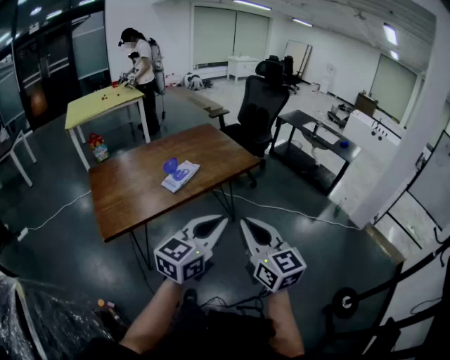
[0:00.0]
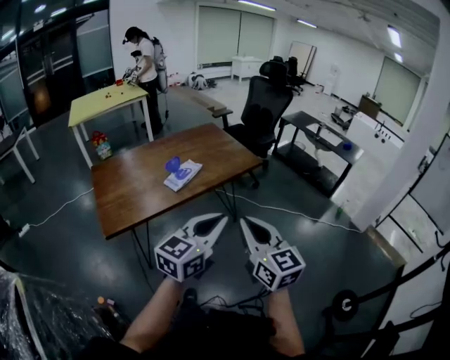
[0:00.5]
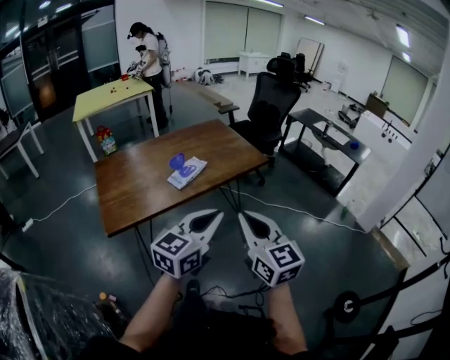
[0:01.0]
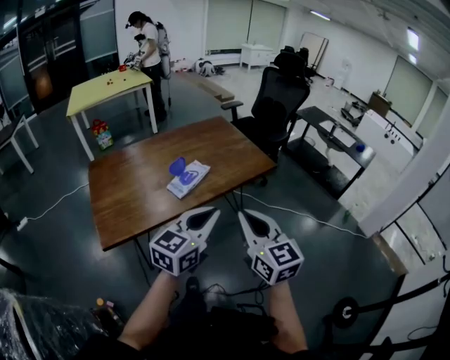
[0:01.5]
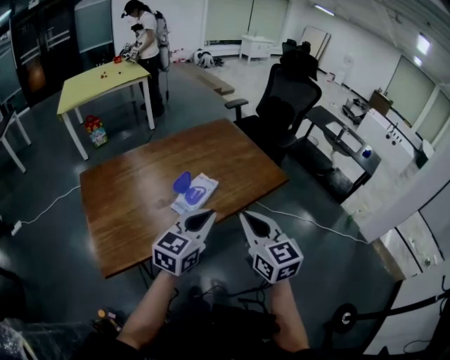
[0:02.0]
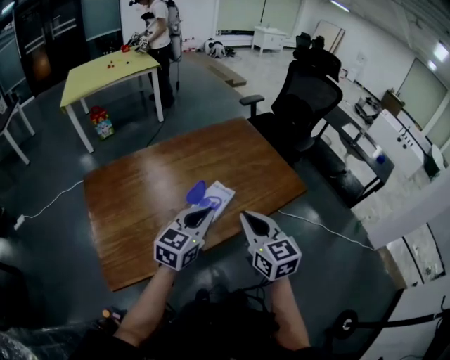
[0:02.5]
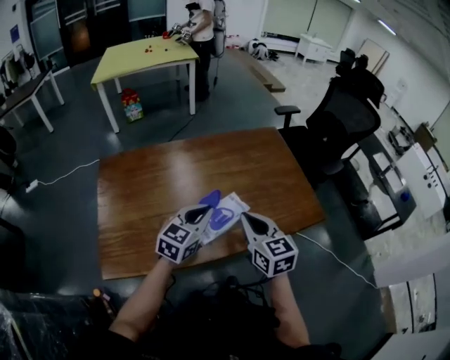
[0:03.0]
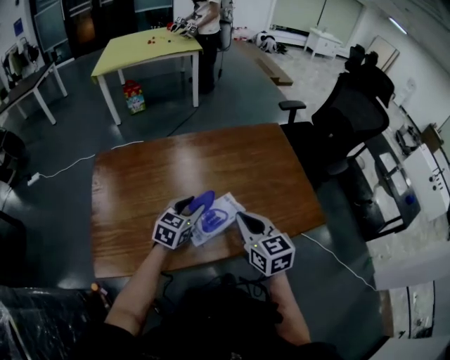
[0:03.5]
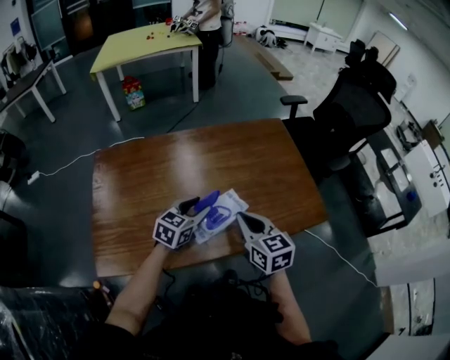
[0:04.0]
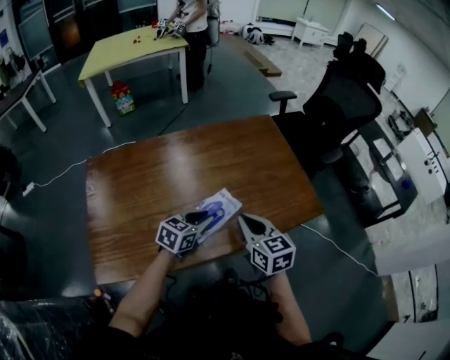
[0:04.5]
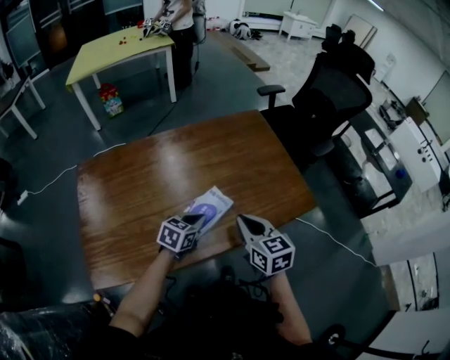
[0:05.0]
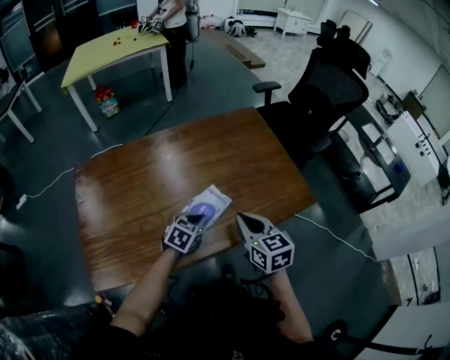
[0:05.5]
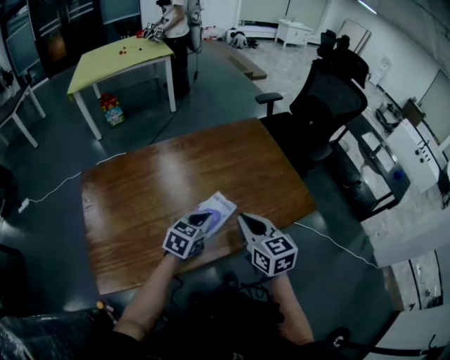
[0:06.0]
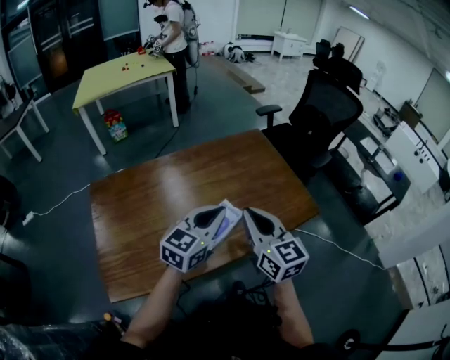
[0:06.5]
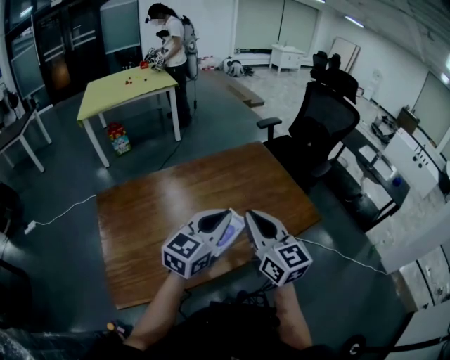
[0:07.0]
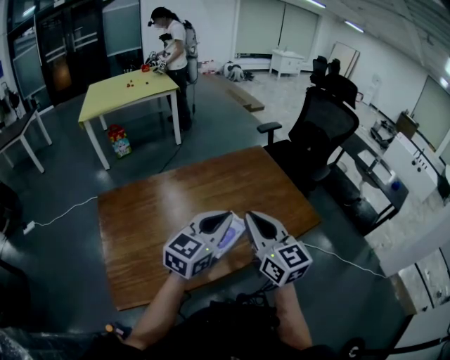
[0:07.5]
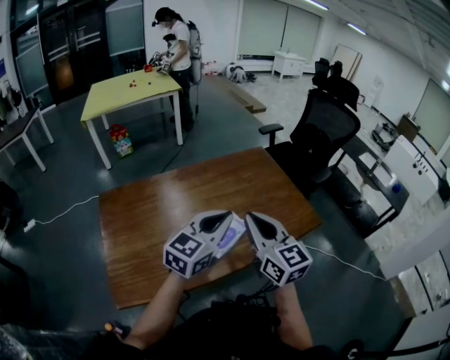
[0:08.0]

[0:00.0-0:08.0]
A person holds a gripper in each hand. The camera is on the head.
0:00.0 to 0:02.0: Both grippers travel together forward and to the left, about 30 cm.
0:02.0 to 0:04.0: The left gripper goes roughly 30 cm forward, downward and to the left, rotates roughly 20 degrees, and opens; the right gripper moves forward and downward, roughly 25 cm, and changes its angle by roughly 20 degrees.
0:04.0 to 0:06.0: The left gripper travels to the right by some 5 cm, travels downward and back again, some 10 cm each way, and closes.
0:06.0 to 0:08.0: The left gripper goes approximately 20 cm upward, and rotates approximately 30 degrees, while the right gripper heads upward, covering about 15 cm.

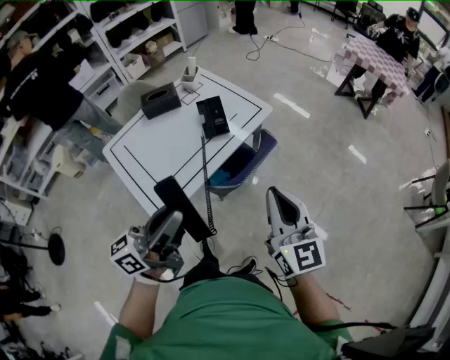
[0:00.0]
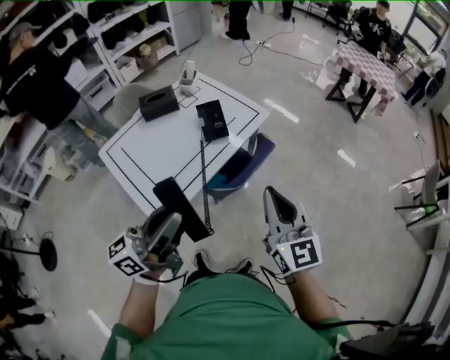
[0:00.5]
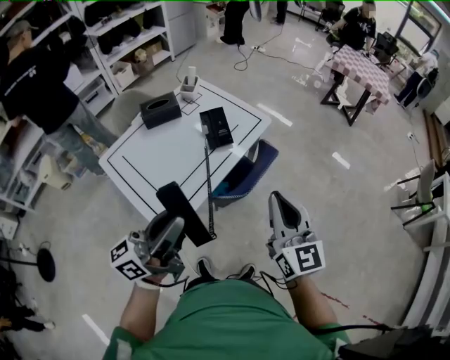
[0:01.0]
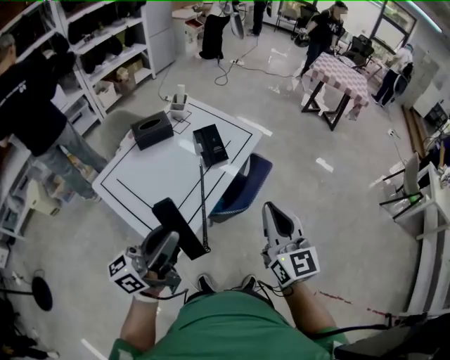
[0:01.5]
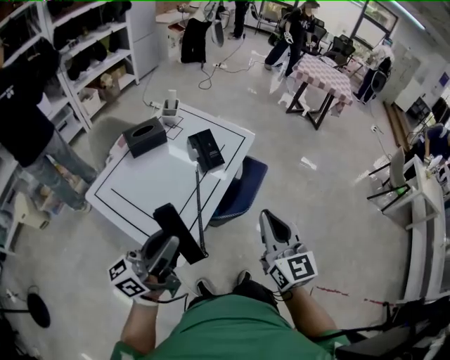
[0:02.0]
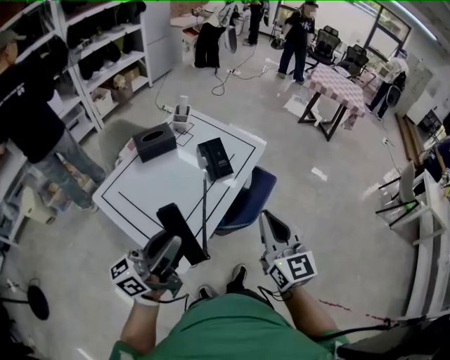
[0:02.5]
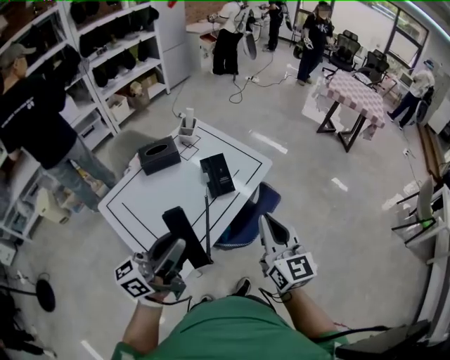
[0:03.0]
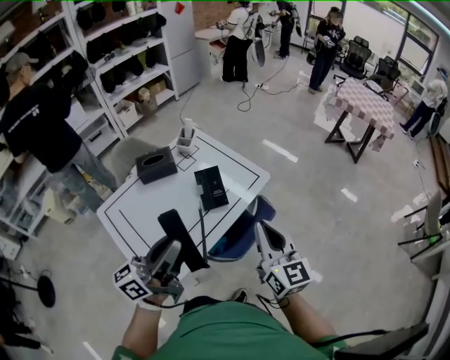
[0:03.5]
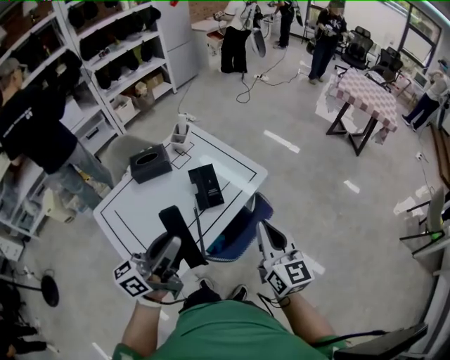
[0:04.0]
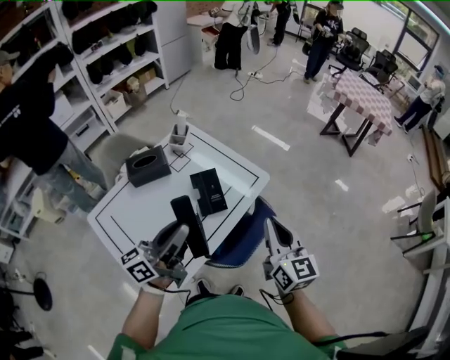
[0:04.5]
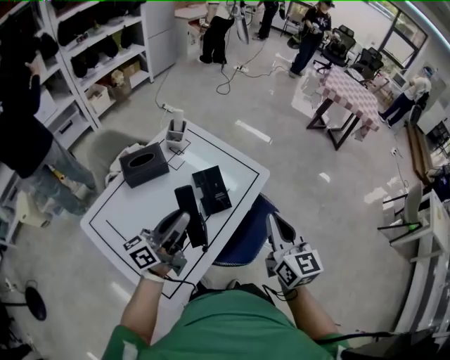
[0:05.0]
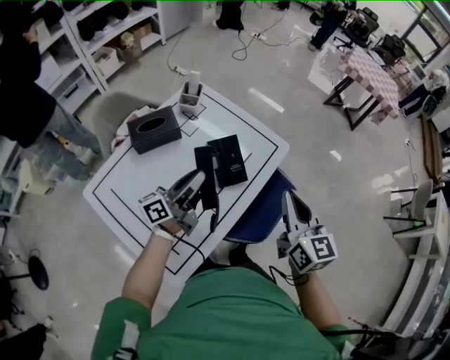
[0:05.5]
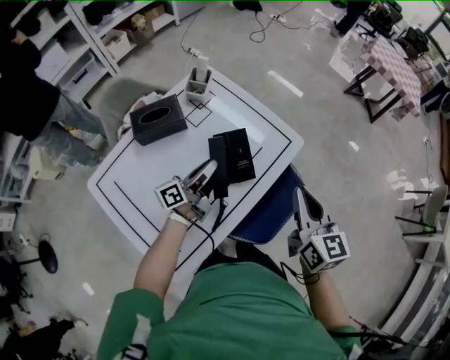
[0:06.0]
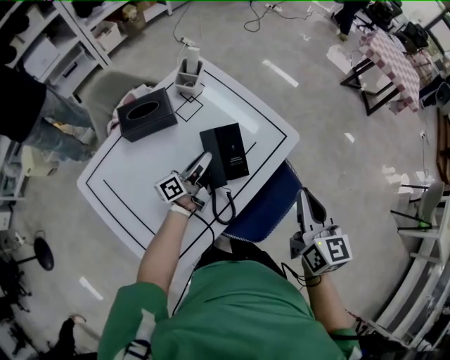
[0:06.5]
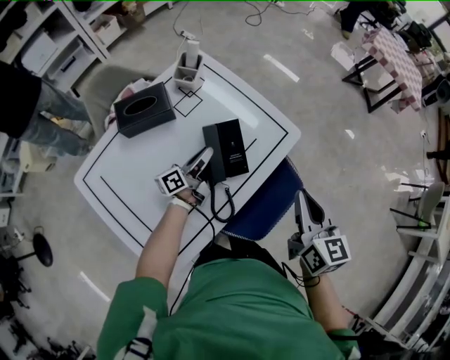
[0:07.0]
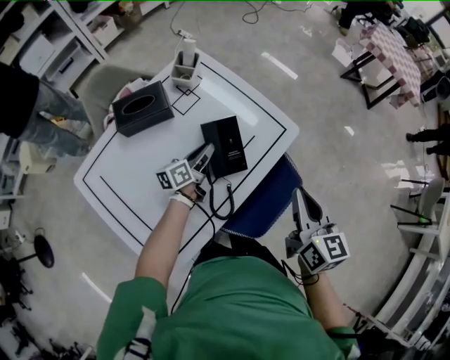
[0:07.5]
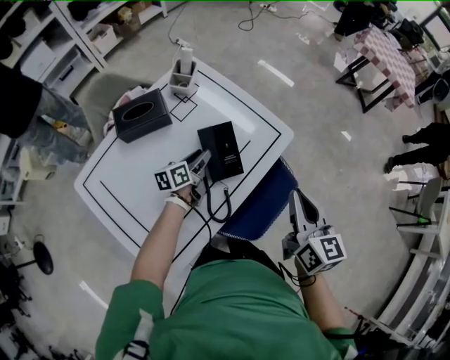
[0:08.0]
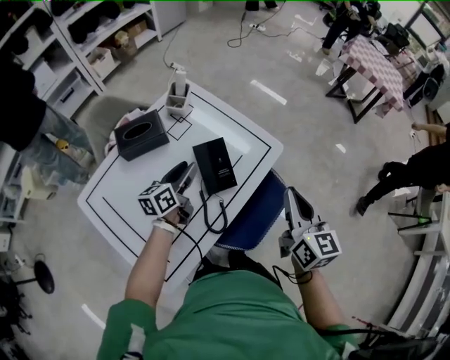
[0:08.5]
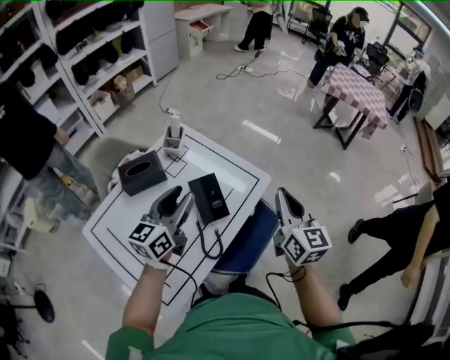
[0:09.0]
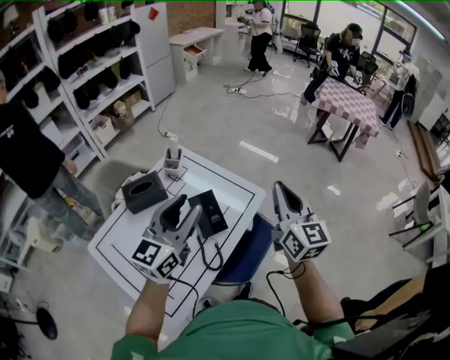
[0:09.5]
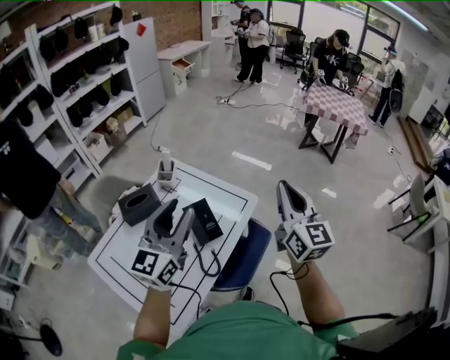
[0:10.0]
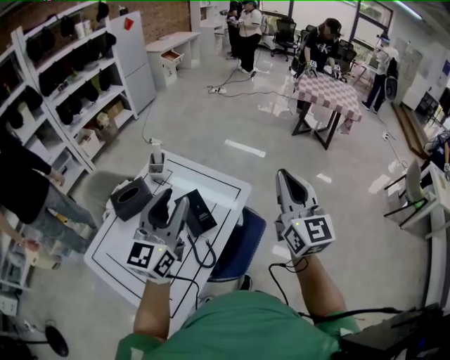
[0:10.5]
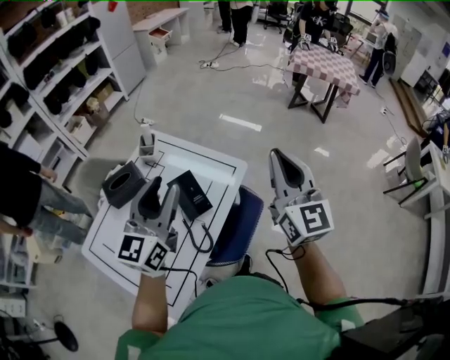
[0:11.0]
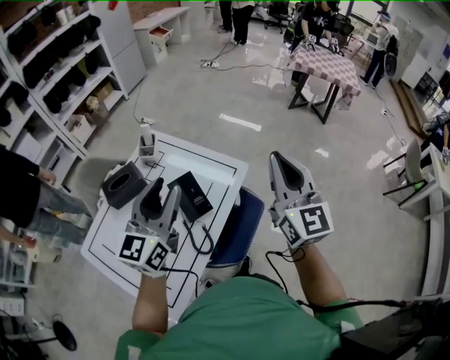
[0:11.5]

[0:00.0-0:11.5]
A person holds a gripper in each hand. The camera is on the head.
0:00.0 to 0:02.0: Both grippers move to the left, roughly 20 cm.
0:02.0 to 0:04.0: Both grippers travel together forward and to the right, some 25 cm.
0:04.0 to 0:06.0: The left gripper goes about 40 cm downward, forward and to the left, and changes its angle by some 30 degrees. The right gripper shifts roughly 15 cm forward, to the left and downward.
0:06.0 to 0:07.5: The left gripper travels downward and forward by about 10 cm, and turns by roughly 20 degrees.
0:07.5 to 0:09.5: The right gripper is displaced upward by about 20 cm, and turns by roughly 30 degrees. The left gripper shifts about 40 cm upward, and twists roughly 50 degrees clockwise, seen from behind.
0:09.5 to 0:11.5: The right gripper ends up some 5 cm from where it was.

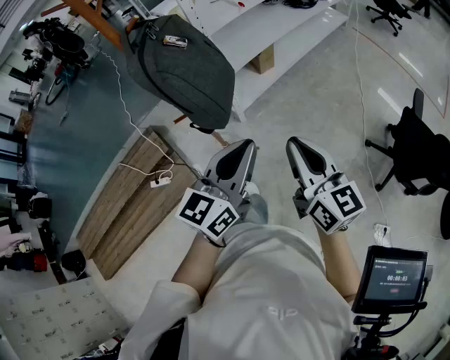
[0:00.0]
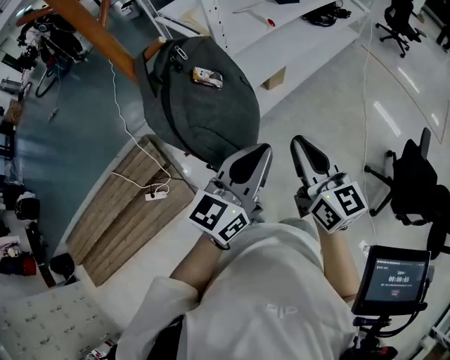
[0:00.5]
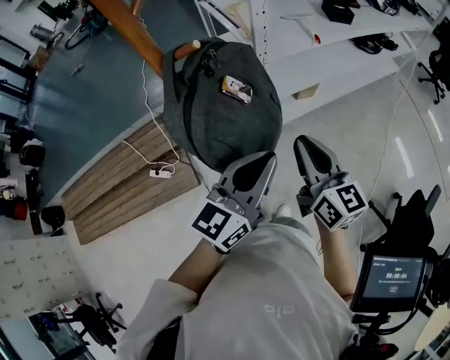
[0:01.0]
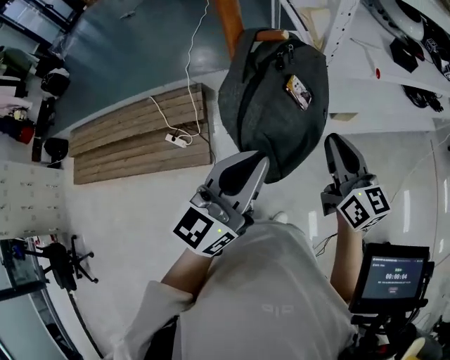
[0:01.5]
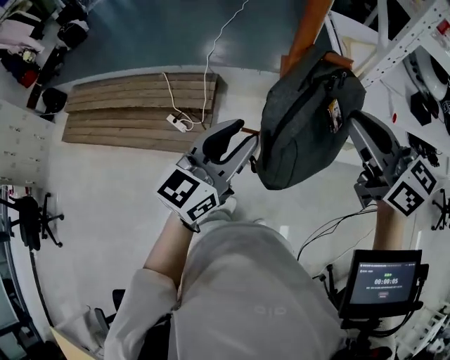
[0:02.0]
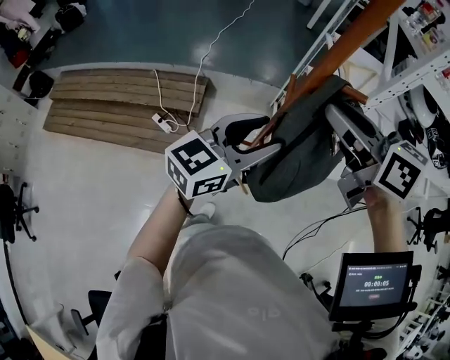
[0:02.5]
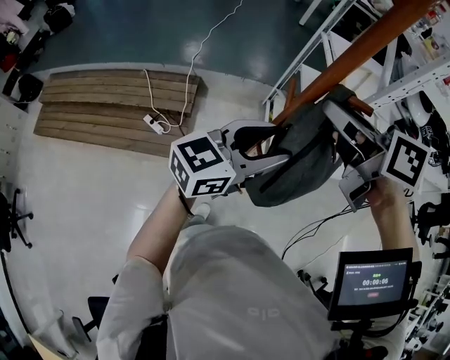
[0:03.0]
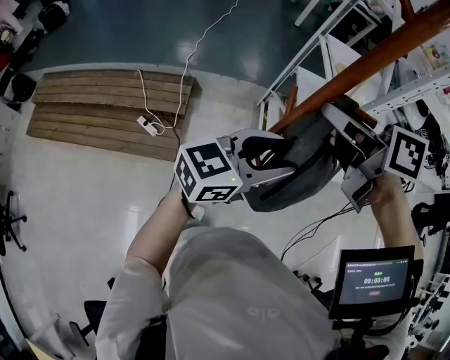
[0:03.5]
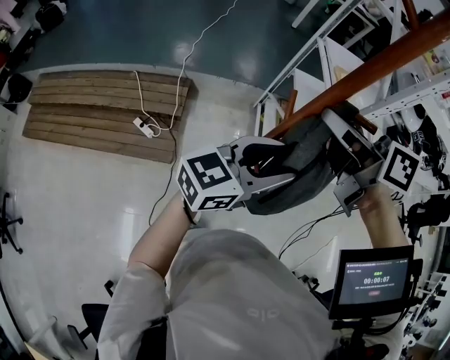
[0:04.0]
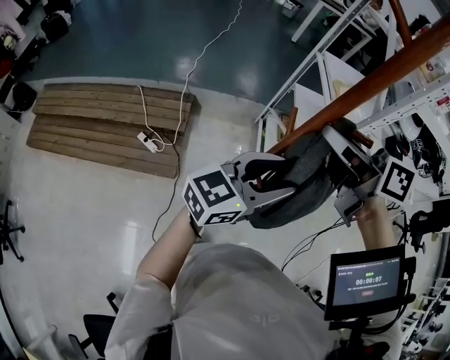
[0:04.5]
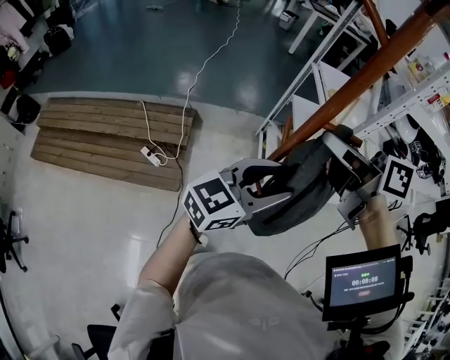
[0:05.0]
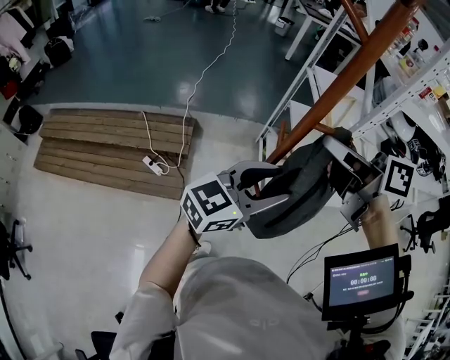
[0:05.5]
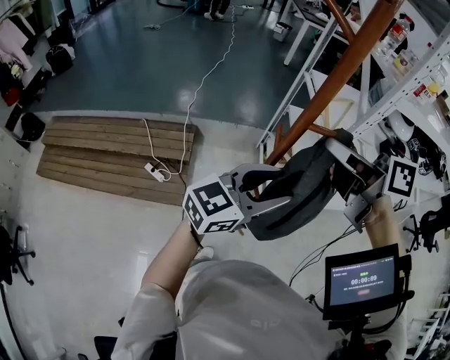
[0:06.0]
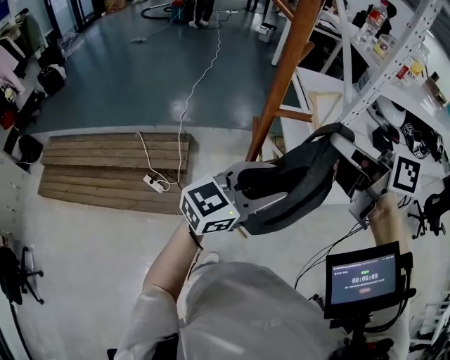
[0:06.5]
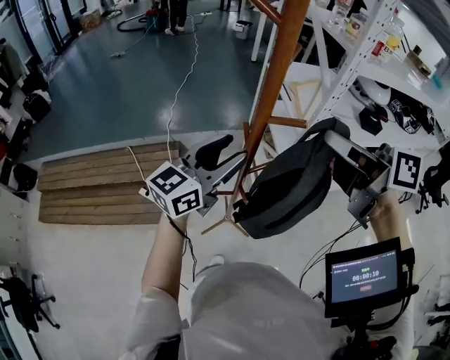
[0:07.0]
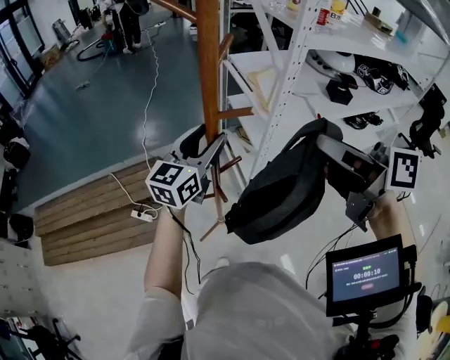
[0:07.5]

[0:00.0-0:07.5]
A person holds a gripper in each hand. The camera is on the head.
0:00.0 to 0:02.0: The left gripper shifts by roughly 30 cm, swivels about 40 degrees, and opens its fingers; the right gripper shifts by some 40 cm, and swivels roughly 60 degrees.
0:02.0 to 0:04.0: The right gripper travels to the left and forward by approximately 15 cm, and turns by about 30 degrees, while the left gripper changes its angle by about 30 degrees.
0:04.0 to 0:05.5: The right gripper moves about 5 cm.
0:05.5 to 0:07.5: The left gripper moves forward, some 15 cm; the right gripper shifts approximately 15 cm to the right and backward.
